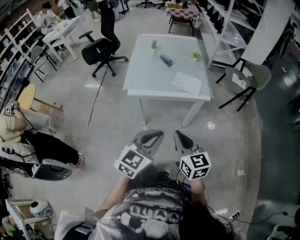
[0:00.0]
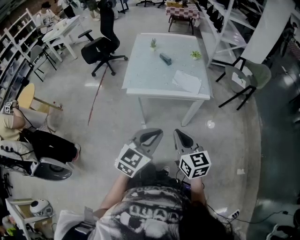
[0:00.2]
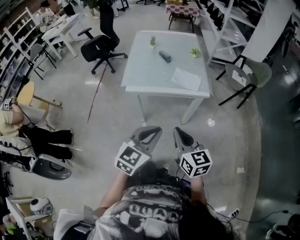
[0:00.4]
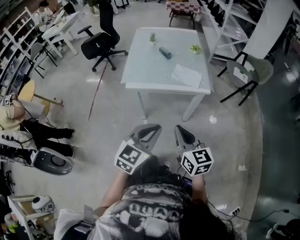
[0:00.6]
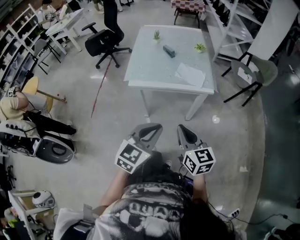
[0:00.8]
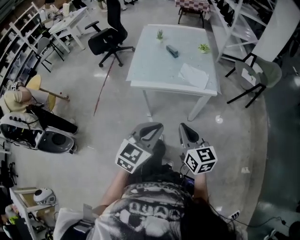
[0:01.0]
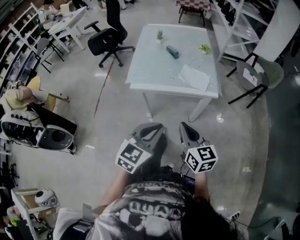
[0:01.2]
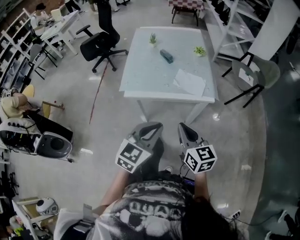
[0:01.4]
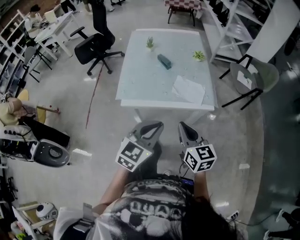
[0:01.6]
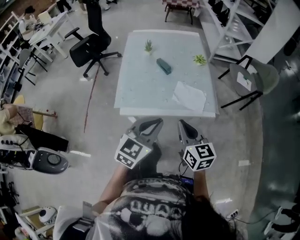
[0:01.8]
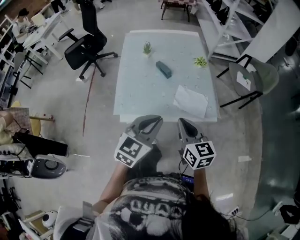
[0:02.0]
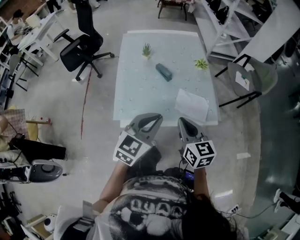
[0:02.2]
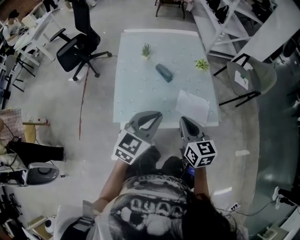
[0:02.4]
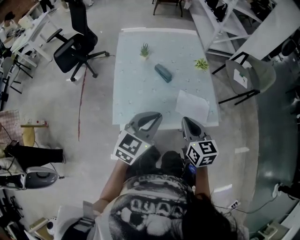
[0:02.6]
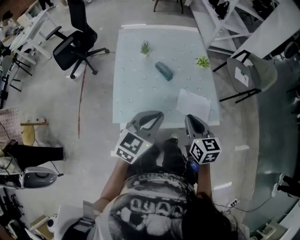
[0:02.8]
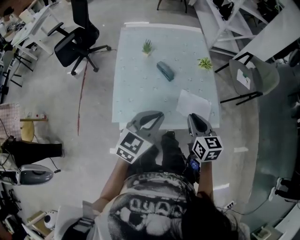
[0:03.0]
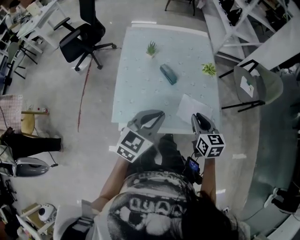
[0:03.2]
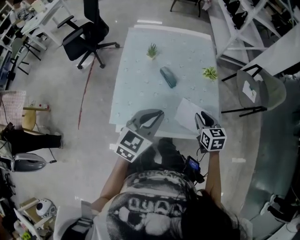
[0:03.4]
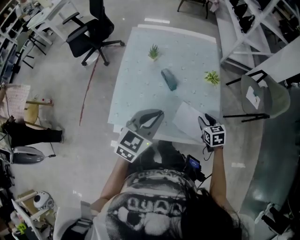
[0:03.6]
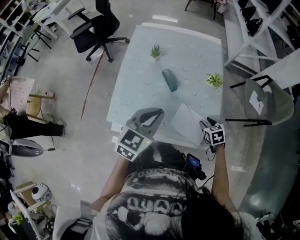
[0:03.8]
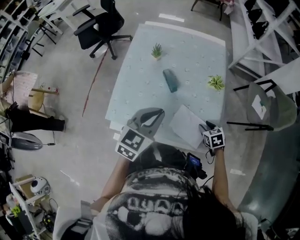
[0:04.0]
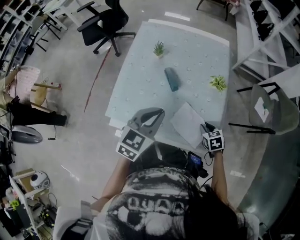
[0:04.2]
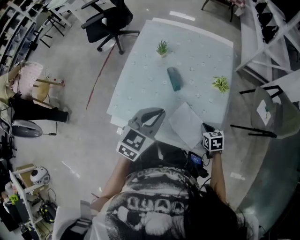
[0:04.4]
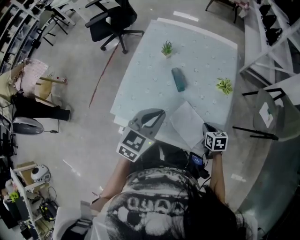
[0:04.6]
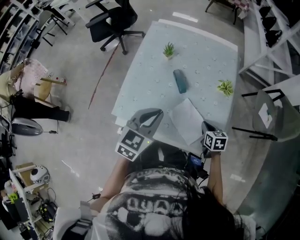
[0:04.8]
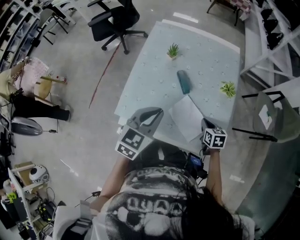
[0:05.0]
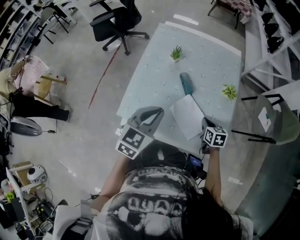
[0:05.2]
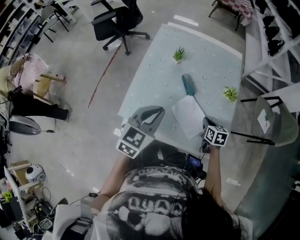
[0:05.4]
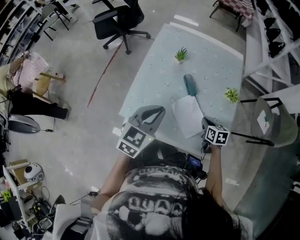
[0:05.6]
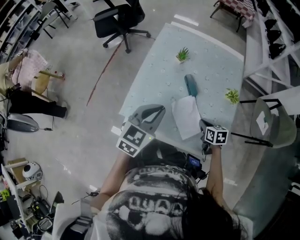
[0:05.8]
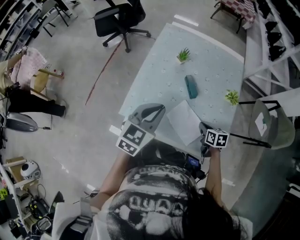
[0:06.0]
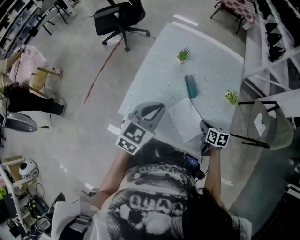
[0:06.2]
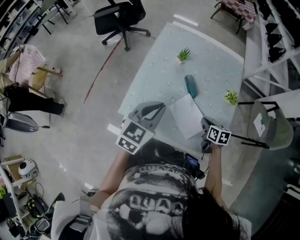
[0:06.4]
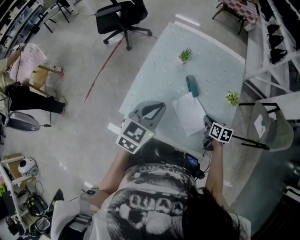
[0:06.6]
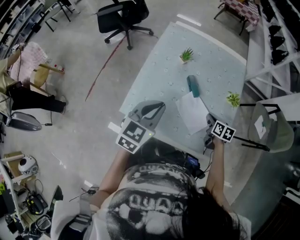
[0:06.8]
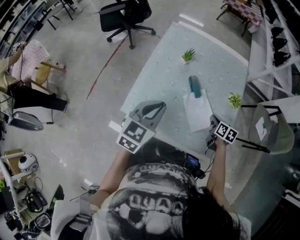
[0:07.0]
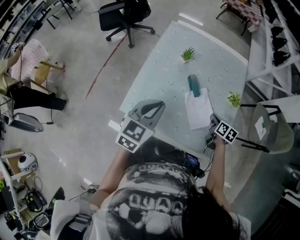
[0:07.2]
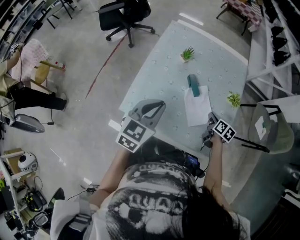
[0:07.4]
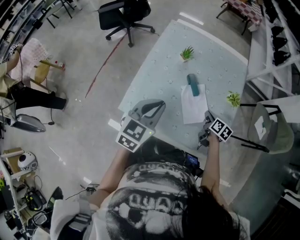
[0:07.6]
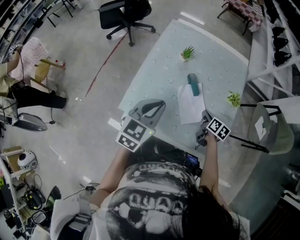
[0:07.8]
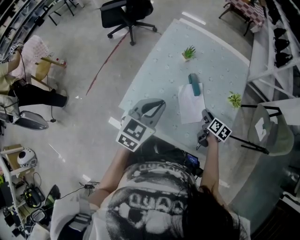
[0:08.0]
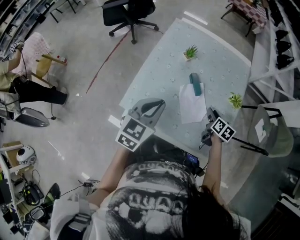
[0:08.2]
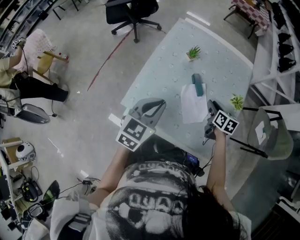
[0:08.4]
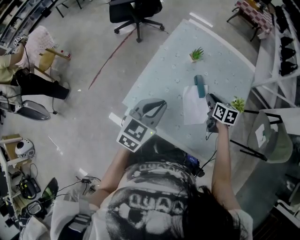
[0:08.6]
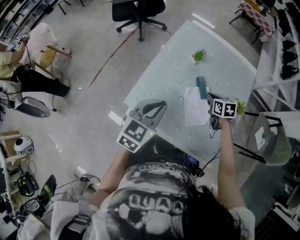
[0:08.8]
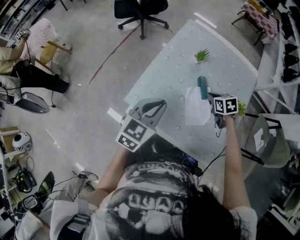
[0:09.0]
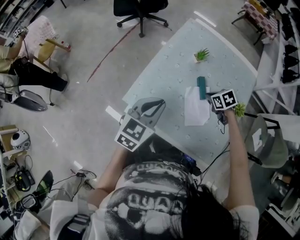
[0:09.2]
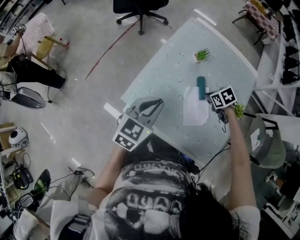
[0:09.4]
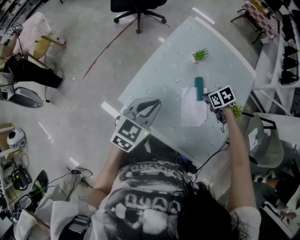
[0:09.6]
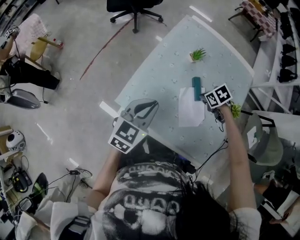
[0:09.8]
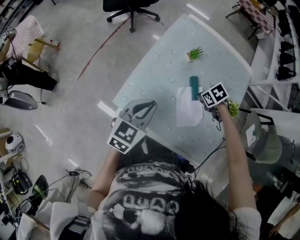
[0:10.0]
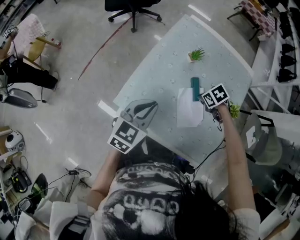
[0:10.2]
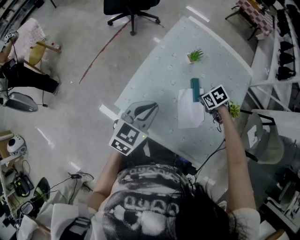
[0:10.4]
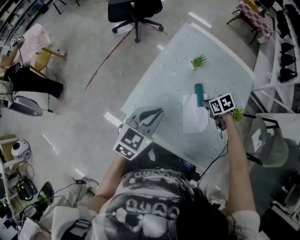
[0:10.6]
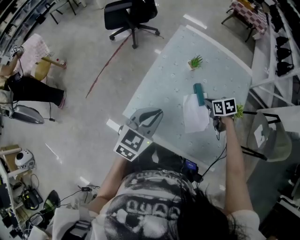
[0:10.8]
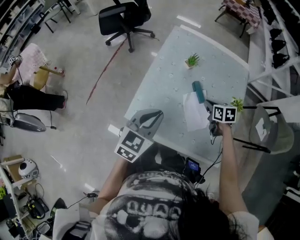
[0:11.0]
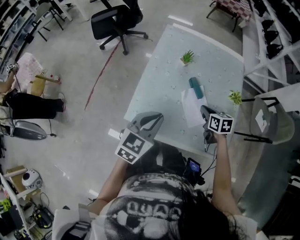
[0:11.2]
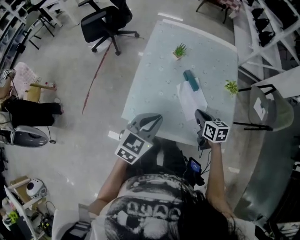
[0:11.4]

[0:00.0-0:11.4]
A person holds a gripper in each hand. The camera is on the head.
0.0 to 1.4 s: The two grippers go some 10 cm forward.
1.4 to 2.8 s: The two grippers go approximately 25 cm forward.
2.8 to 4.2 s: The left gripper moves forward and to the right, approximately 10 cm, and turns by approximately 20 degrees. Meanwhile the right gripper moves downward, to the right and forward, about 30 cm, points its fingers about 30 degrees further downward, and opens.
4.2 to 5.6 s: The left gripper travels to the left by approximately 10 cm, while the right gripper shifts roughly 10 cm to the left and forward, changes its angle by approximately 20 degrees, and closes its fingers.
5.6 to 7.2 s: The right gripper shifts by roughly 5 cm.
7.2 to 8.6 s: The right gripper heads to the left, forward and upward, covering approximately 15 cm, swivels roughly 30 degrees, and opens, then closes once more.
8.6 to 10.0 s: The right gripper travels downward by some 5 cm, and points its fingers about 30 degrees further downward.
10.0 to 11.4 s: The left gripper moves roughly 5 cm; the right gripper ends up roughly 15 cm from where it was, and angles its fingers upward, by approximately 40 degrees.

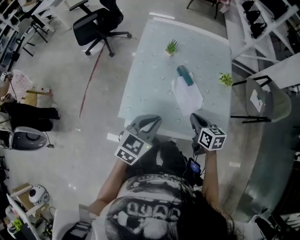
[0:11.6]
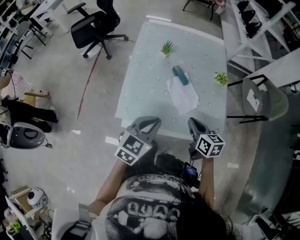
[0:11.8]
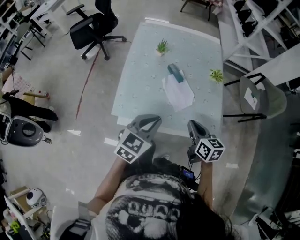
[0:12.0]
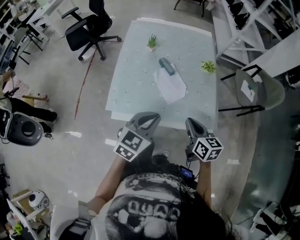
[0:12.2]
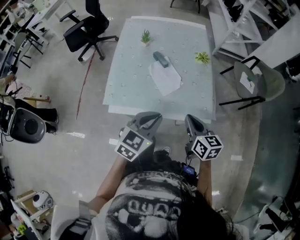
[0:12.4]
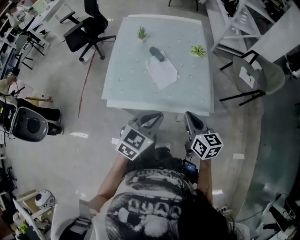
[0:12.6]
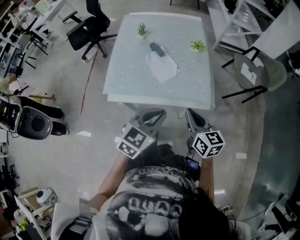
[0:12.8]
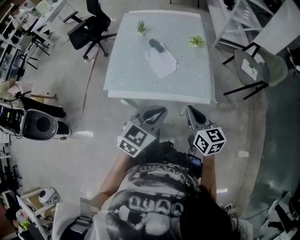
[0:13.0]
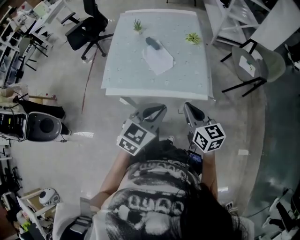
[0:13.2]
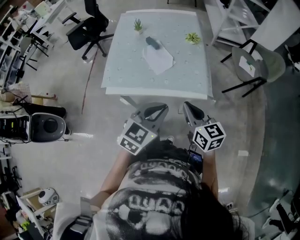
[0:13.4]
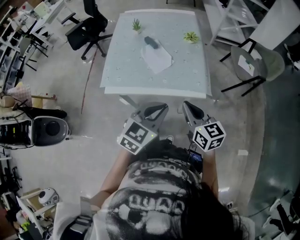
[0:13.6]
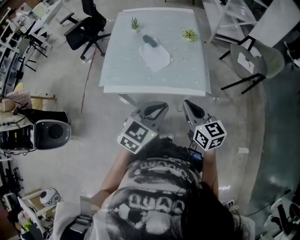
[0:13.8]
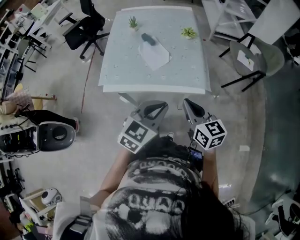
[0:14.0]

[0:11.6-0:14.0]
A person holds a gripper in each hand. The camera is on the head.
11.6 to 12.8 s: The right gripper goes approximately 25 cm backward, to the right and upward. The left gripper travels to the right and backward by about 25 cm.
12.8 to 14.0 s: The left gripper moves to the right, roughly 5 cm; the right gripper changes place by approximately 5 cm.

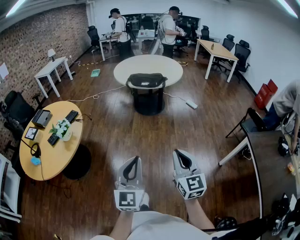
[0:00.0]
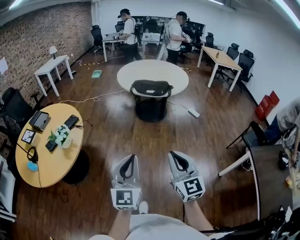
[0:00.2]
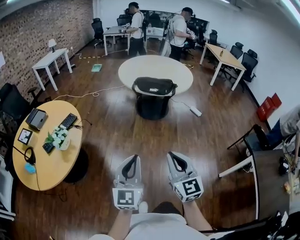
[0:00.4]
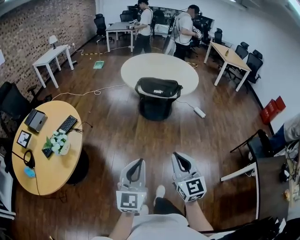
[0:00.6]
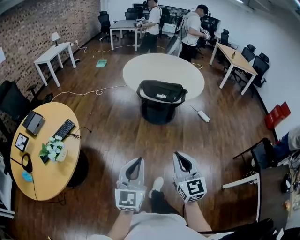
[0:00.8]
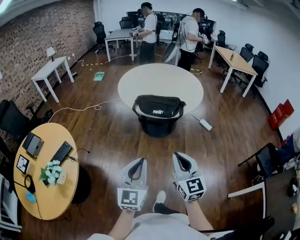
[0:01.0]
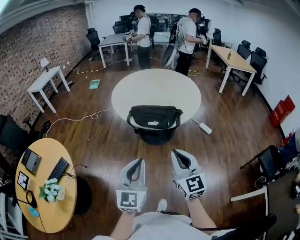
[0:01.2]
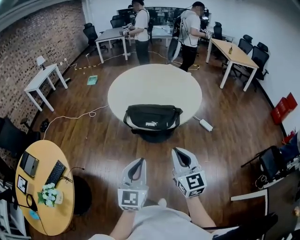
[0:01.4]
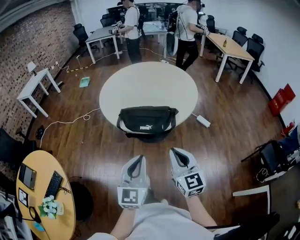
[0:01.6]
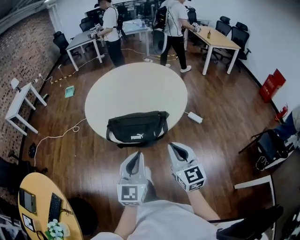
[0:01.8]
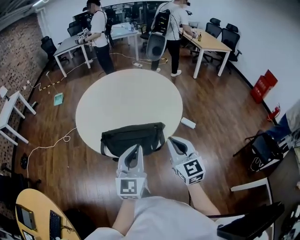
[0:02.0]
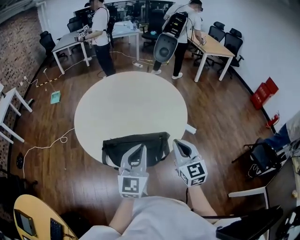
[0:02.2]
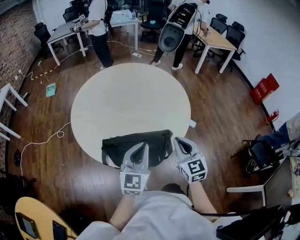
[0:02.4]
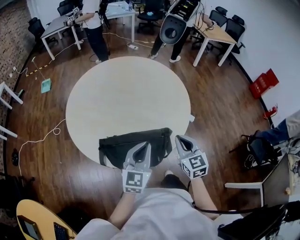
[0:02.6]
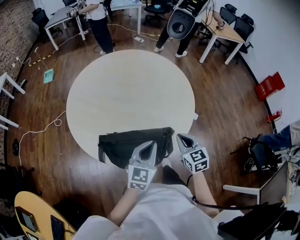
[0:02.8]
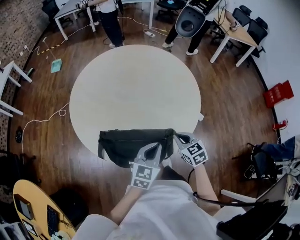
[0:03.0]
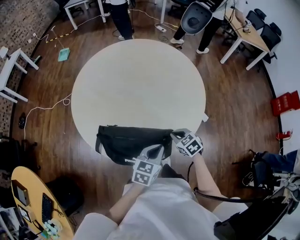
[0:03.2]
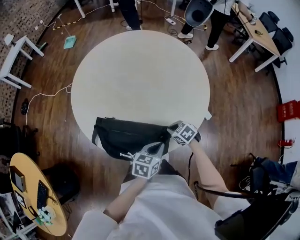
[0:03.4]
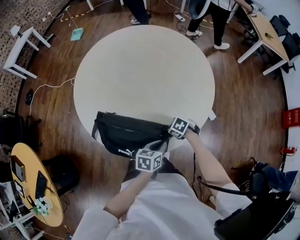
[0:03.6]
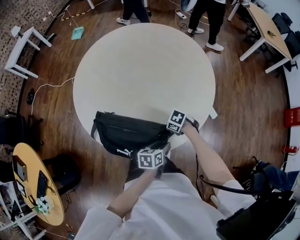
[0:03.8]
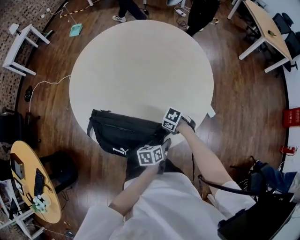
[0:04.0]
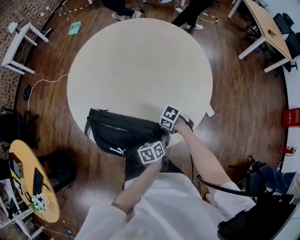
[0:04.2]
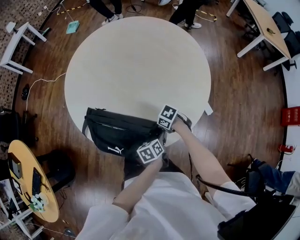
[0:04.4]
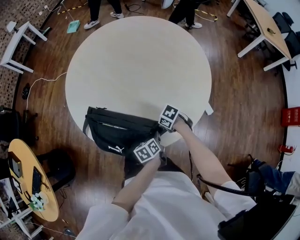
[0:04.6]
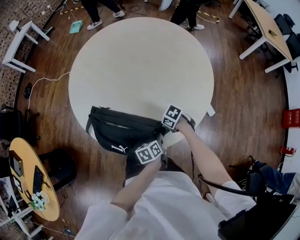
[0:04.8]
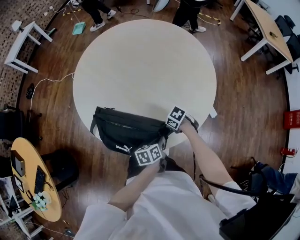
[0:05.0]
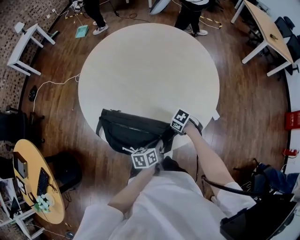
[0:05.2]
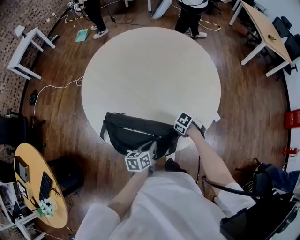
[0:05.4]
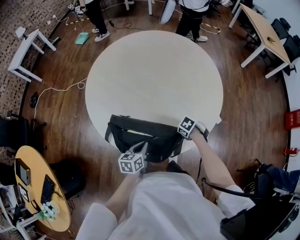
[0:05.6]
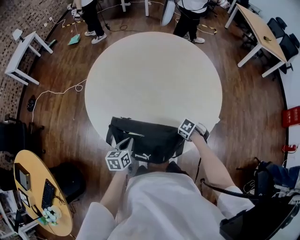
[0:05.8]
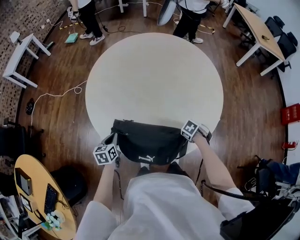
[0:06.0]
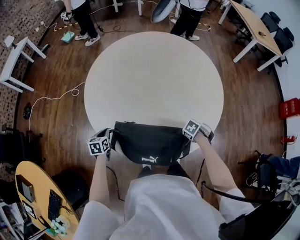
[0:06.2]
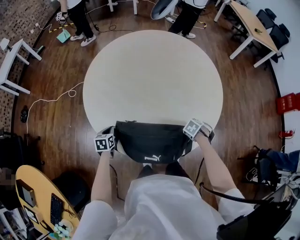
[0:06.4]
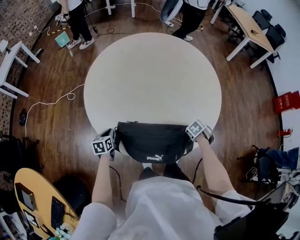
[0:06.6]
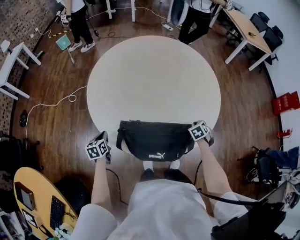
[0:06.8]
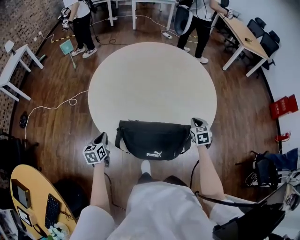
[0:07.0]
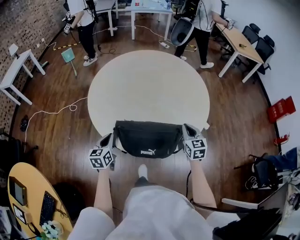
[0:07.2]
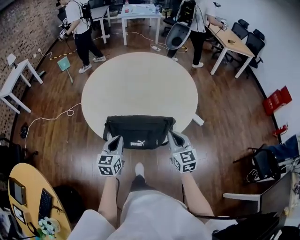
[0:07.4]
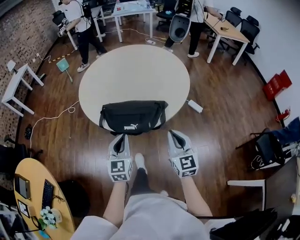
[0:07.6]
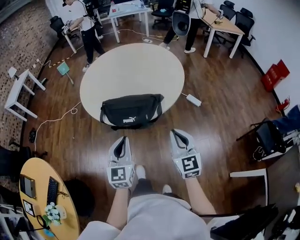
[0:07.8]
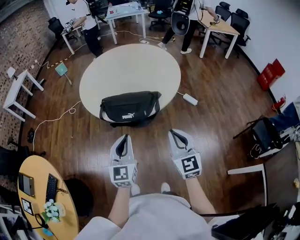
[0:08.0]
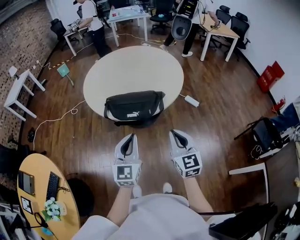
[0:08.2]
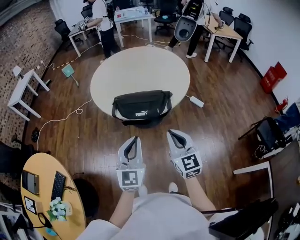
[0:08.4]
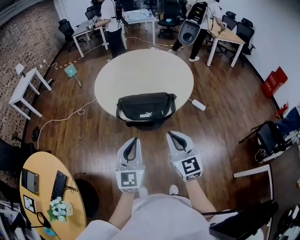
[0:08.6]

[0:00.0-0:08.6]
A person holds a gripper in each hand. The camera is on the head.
0.0 to 1.4 s: The pair of grippers is taken forward, about 60 cm.
1.4 to 2.8 s: The pair of grippers is taken forward, approximately 40 cm. The left gripper rotates roughly 30 degrees; the right gripper swivels roughly 30 degrees.
2.8 to 4.4 s: The grippers both shift downward by roughly 25 cm. The left gripper twists approximately 60 degrees counterclockwise, seen from behind, and opens up; the right gripper turns by roughly 80 degrees.
4.4 to 5.8 s: The left gripper moves approximately 30 cm, turns by about 30 degrees, and closes; the right gripper turns by approximately 20 degrees.
5.8 to 7.2 s: The right gripper goes approximately 20 cm upward, and tilts its fingers about 50 degrees upward.
7.2 to 8.6 s: Both grippers travel together backward and upward, approximately 40 cm. The right gripper changes its angle by some 20 degrees. Meanwhile the left gripper rotates roughly 40 degrees.

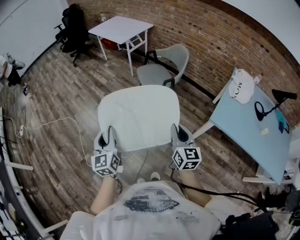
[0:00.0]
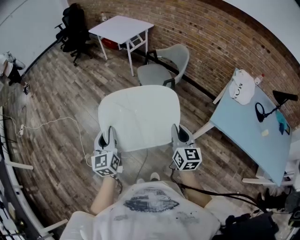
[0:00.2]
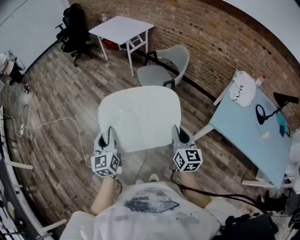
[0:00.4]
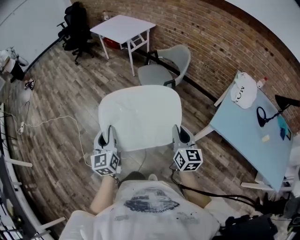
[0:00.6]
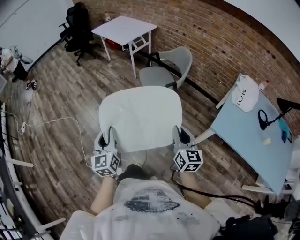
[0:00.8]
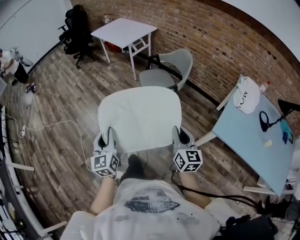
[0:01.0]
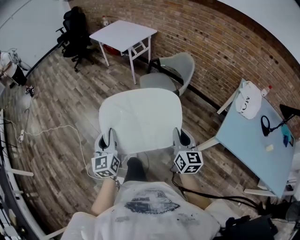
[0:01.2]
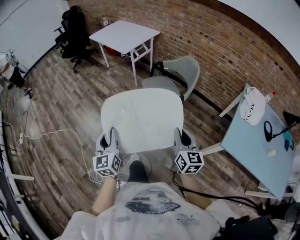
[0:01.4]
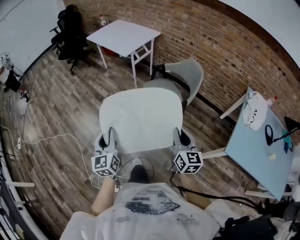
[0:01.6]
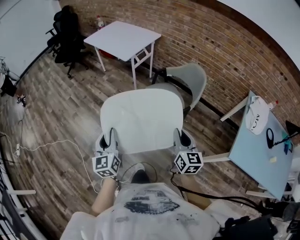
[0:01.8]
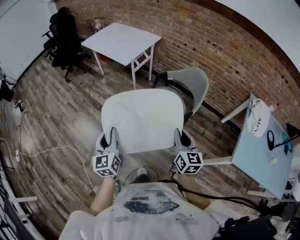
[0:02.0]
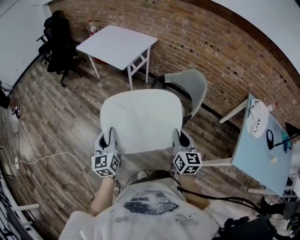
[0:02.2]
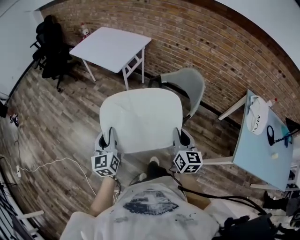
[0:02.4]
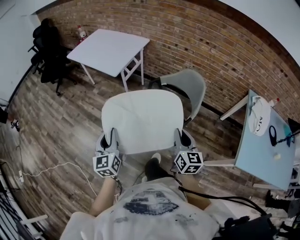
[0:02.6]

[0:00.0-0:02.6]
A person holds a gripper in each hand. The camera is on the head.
0.0 to 1.2 s: Both grippers move forward, approximately 10 cm.
1.2 to 2.6 s: The two grippers go some 40 cm forward.
